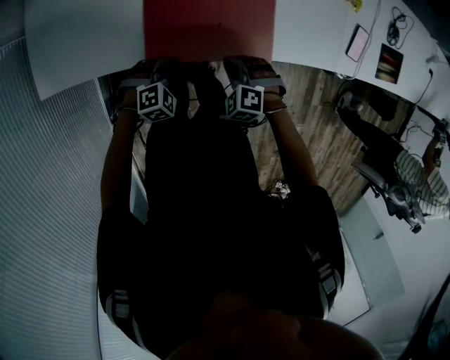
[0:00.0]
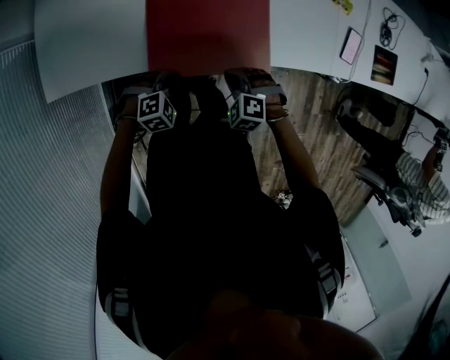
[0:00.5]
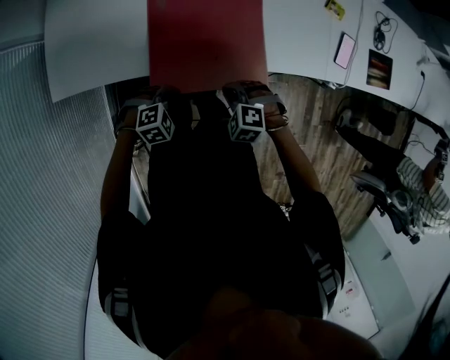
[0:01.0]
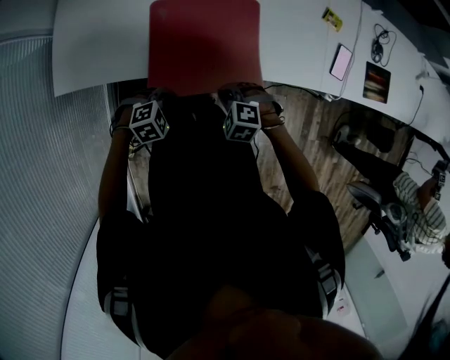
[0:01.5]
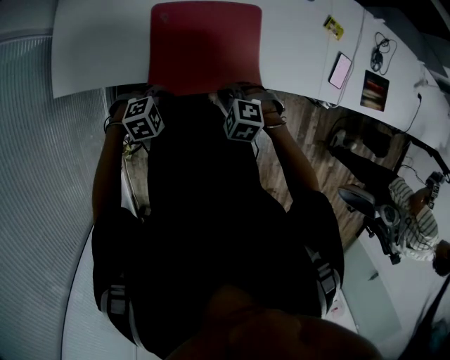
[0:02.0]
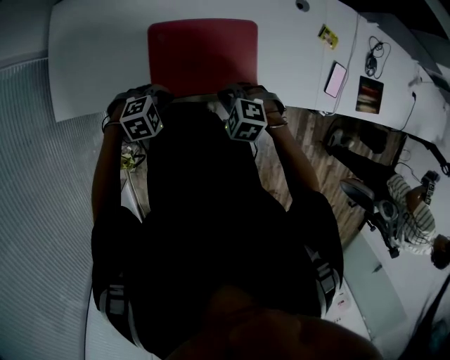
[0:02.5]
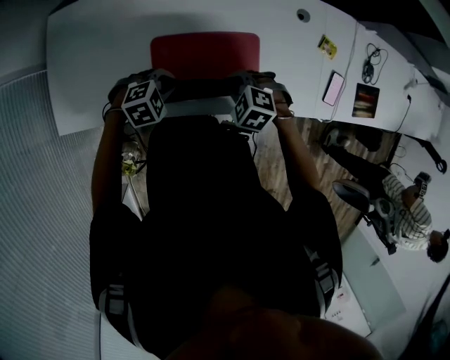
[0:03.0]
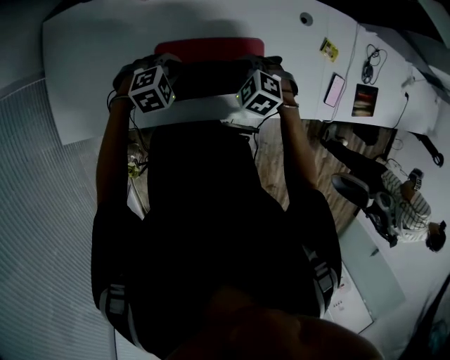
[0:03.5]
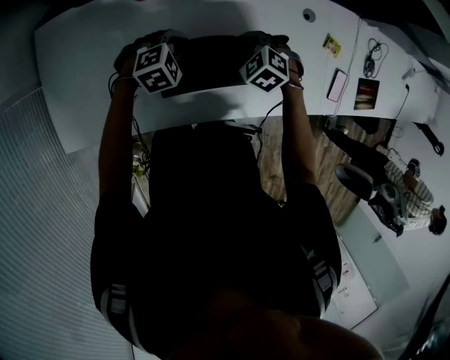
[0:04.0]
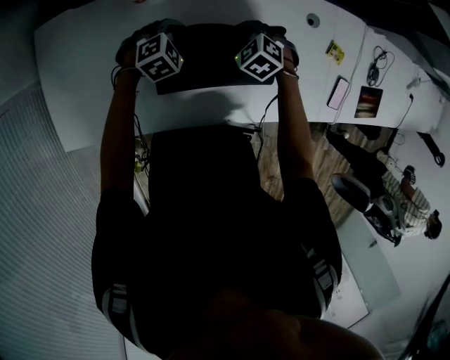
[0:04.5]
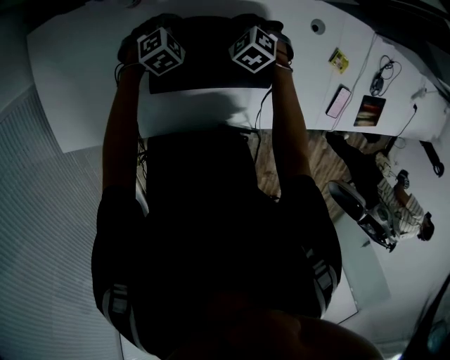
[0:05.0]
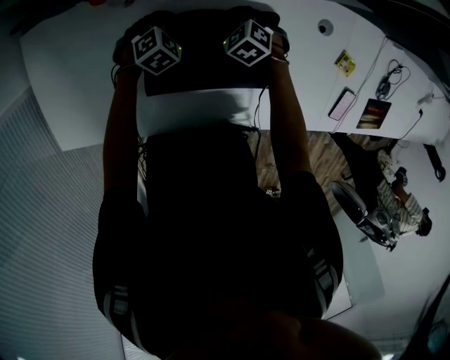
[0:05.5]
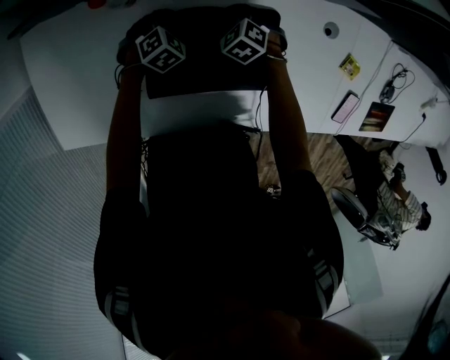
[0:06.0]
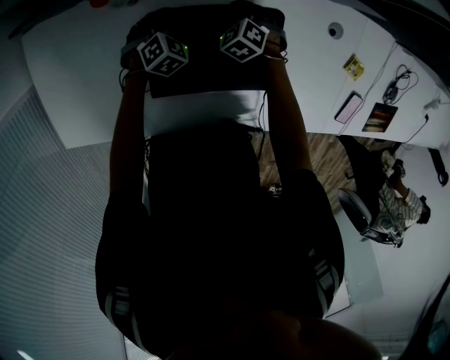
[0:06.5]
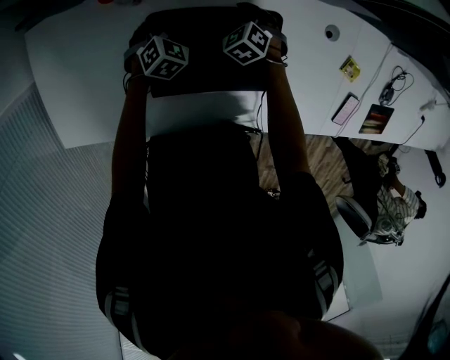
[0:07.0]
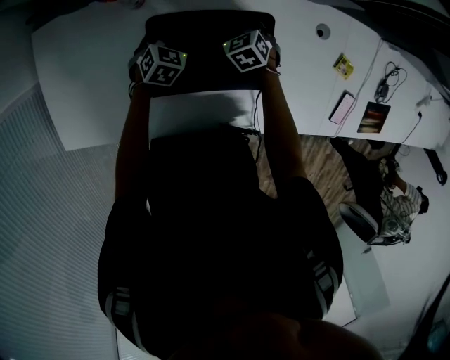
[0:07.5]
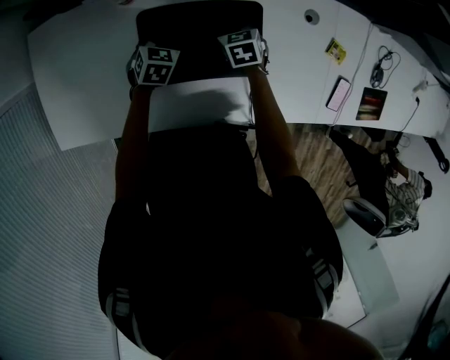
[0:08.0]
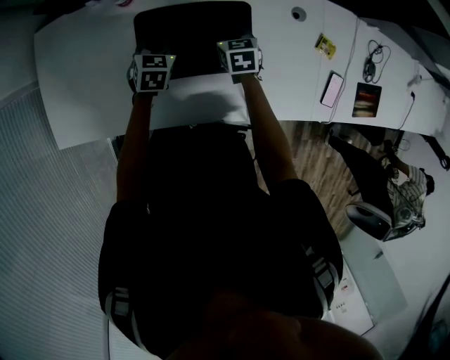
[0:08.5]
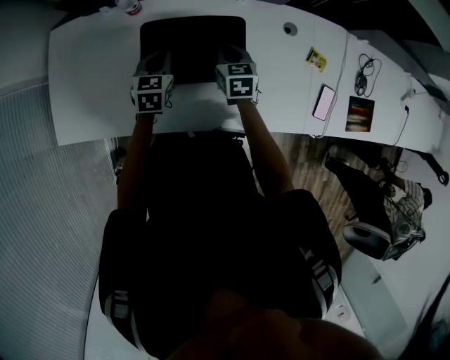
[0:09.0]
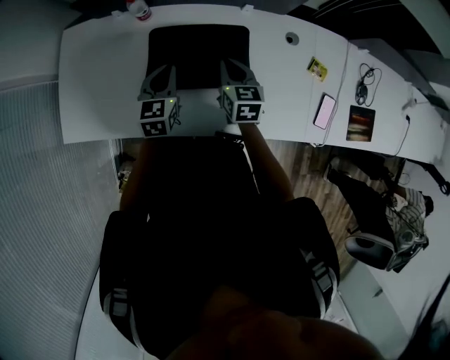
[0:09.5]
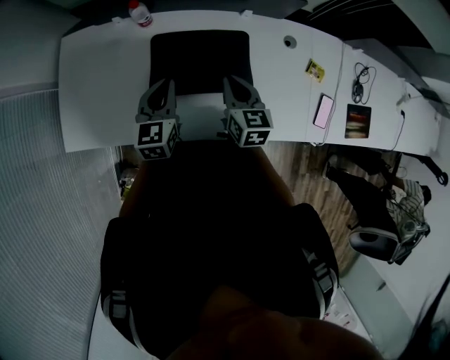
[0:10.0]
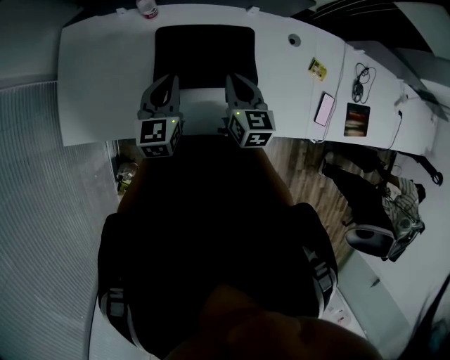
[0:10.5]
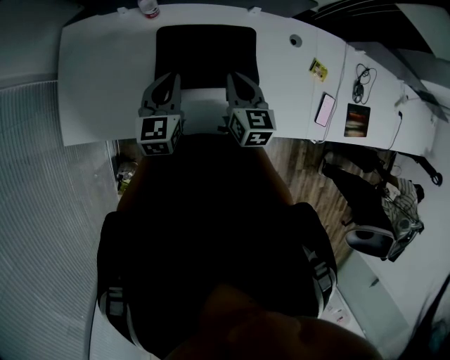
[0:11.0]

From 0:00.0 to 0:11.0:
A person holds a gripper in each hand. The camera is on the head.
From 0:00.0 to 0:02.0: The grippers both shift upward by roughly 10 cm.
From 0:02.0 to 0:03.5: The right gripper shifts by about 25 cm; the left gripper shifts by approximately 30 cm.
From 0:03.5 to 0:05.5: The grippers both shift forward and downward by some 25 cm. The left gripper turns by approximately 20 degrees.
From 0:05.5 to 0:07.5: The left gripper turns by about 20 degrees, and opens, then closes again.
From 0:07.5 to 0:09.0: The grippers both shift backward and upward by roughly 20 cm. The right gripper rotates about 30 degrees; the left gripper rotates roughly 30 degrees.
From 0:09.0 to 0:11.0: The two grippers go roughly 15 cm upward and backward.

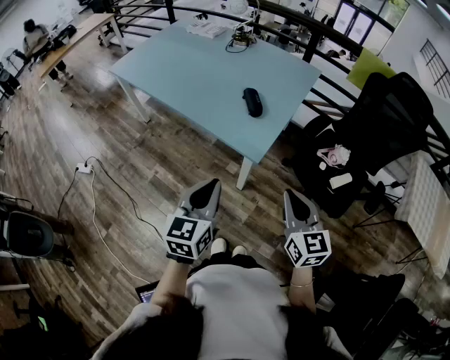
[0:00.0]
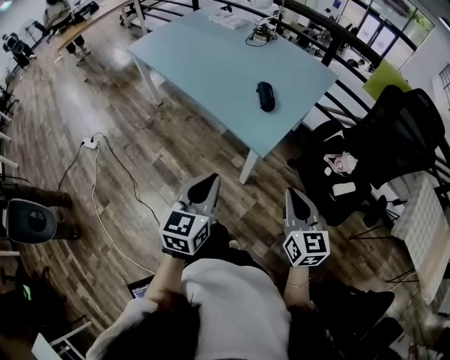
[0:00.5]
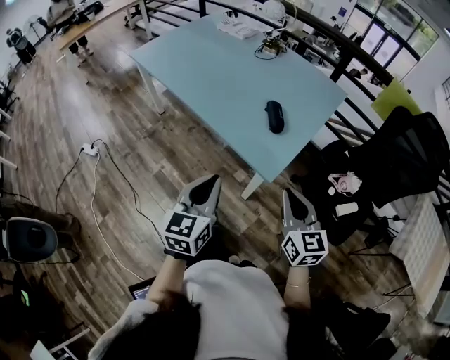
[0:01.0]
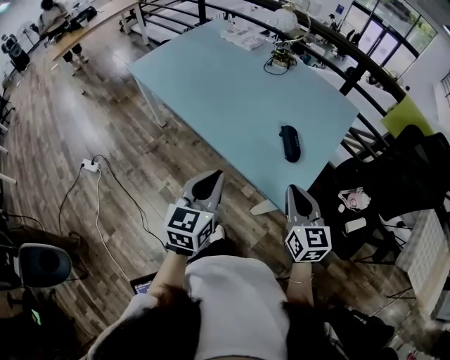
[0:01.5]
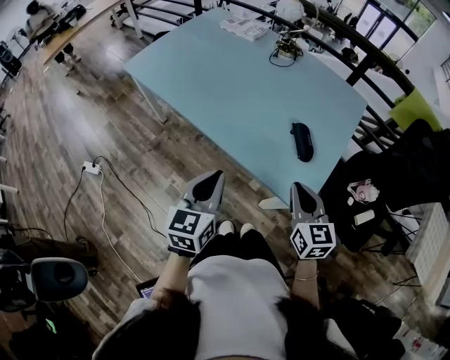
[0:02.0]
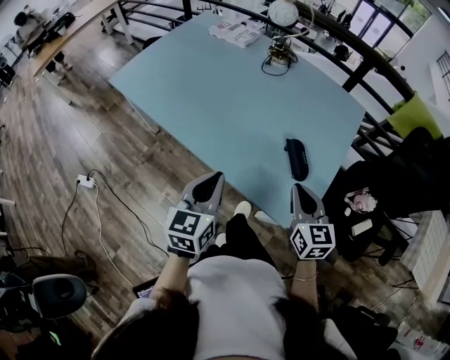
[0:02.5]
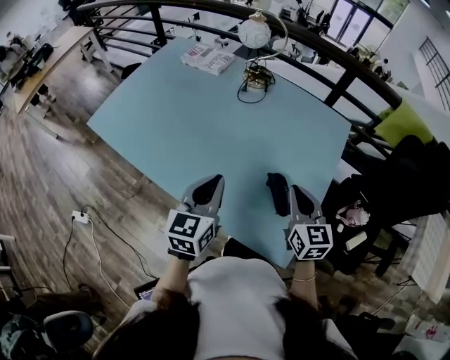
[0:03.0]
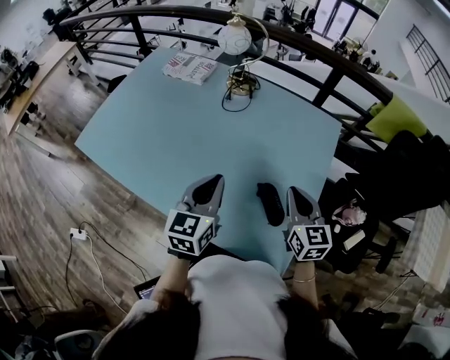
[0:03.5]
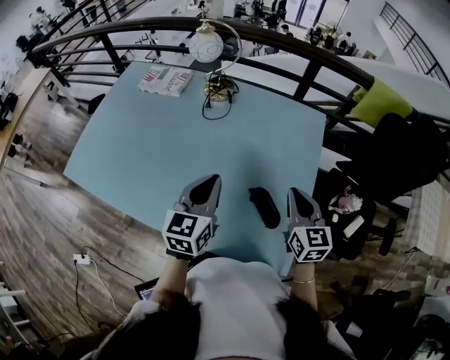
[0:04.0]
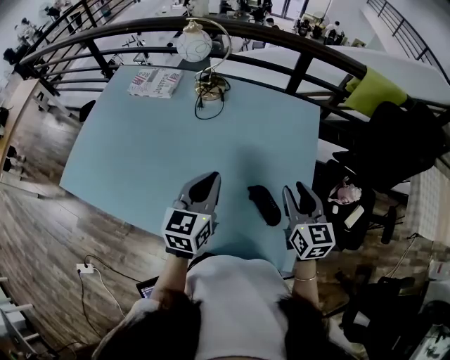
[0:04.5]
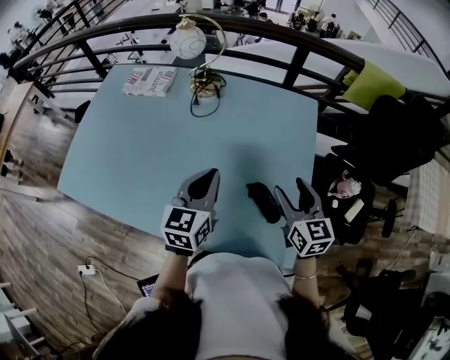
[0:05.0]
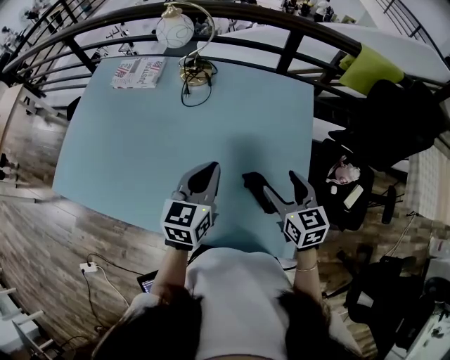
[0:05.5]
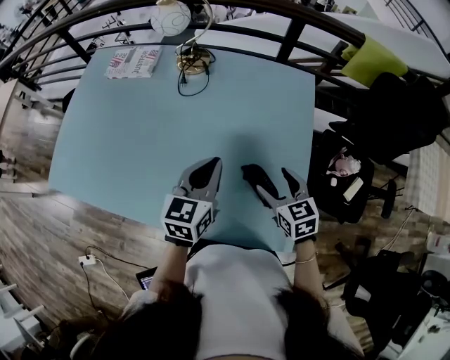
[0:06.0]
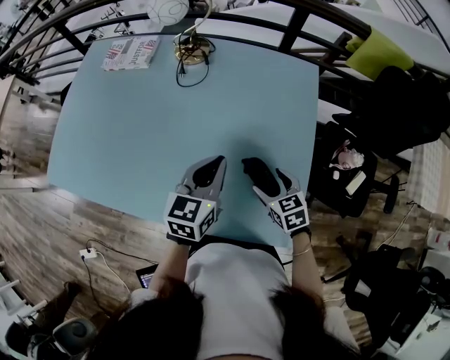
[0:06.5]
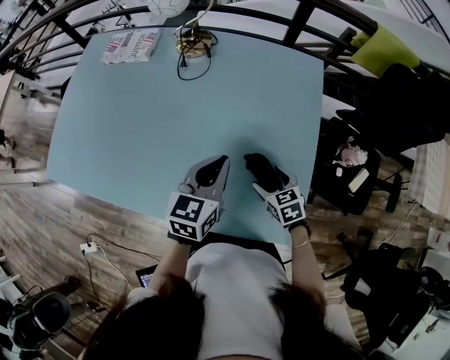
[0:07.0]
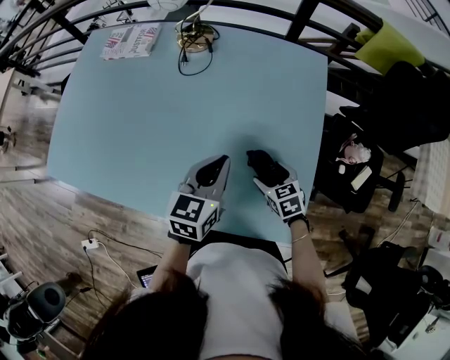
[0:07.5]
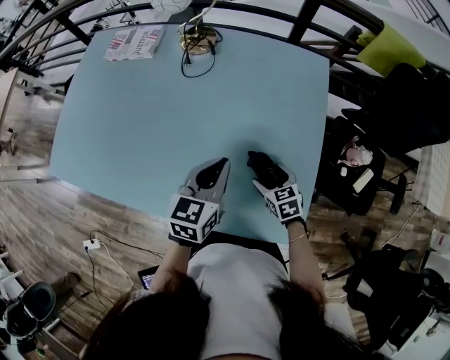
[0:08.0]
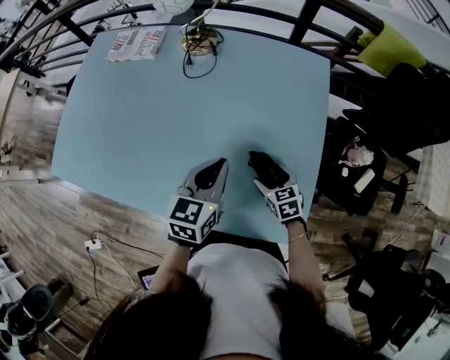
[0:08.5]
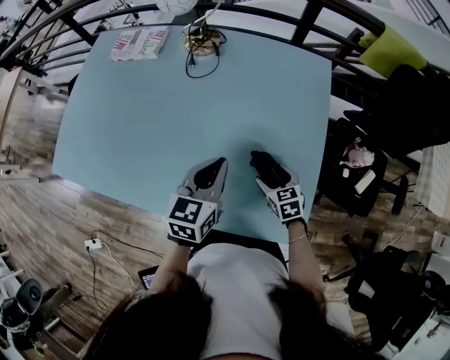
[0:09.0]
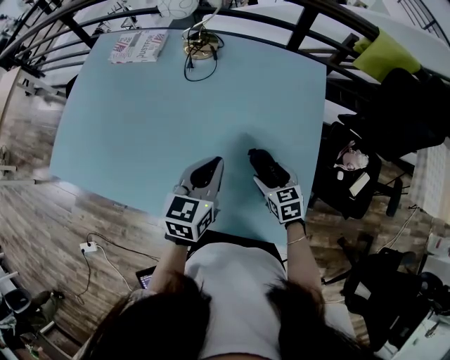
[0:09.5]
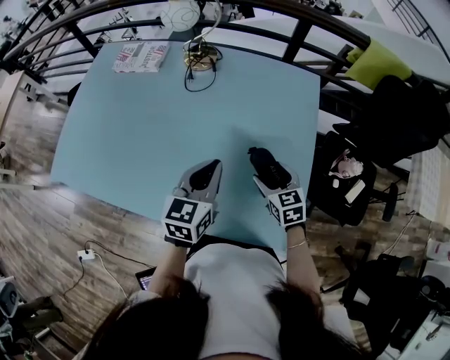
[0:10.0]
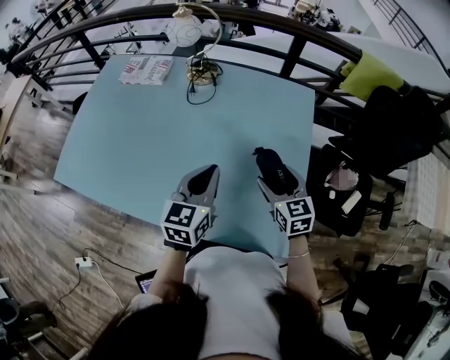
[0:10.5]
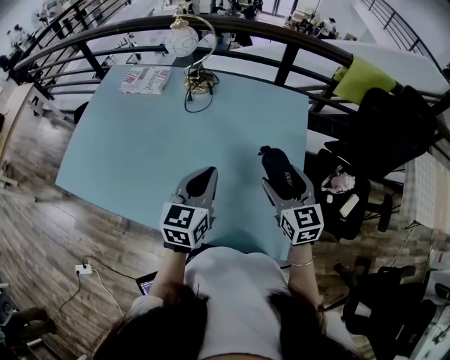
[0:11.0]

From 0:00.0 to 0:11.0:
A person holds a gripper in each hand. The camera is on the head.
From 0:00.0 to 0:02.0: The grippers both shift forward and to the left by some 30 cm.
From 0:02.0 to 0:03.5: Both grippers move forward, roughly 25 cm.
From 0:03.5 to 0:05.5: The left gripper travels forward by some 5 cm. The right gripper opens.
From 0:05.5 to 0:07.5: The right gripper is displaced downward by some 20 cm, and rotates about 30 degrees, while the left gripper moves downward, about 5 cm.
From 0:07.5 to 0:09.0: The grippers move only a little.
From 0:09.0 to 0:11.0: The left gripper shifts some 5 cm upward. The right gripper moves upward, about 25 cm, and angles its fingers upward, by about 30 degrees.

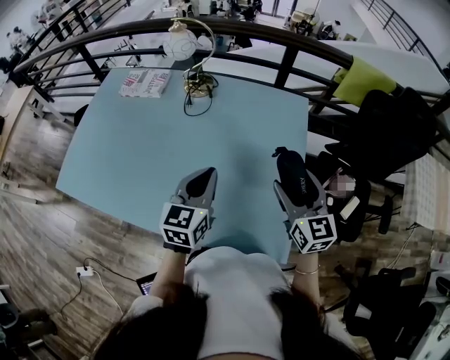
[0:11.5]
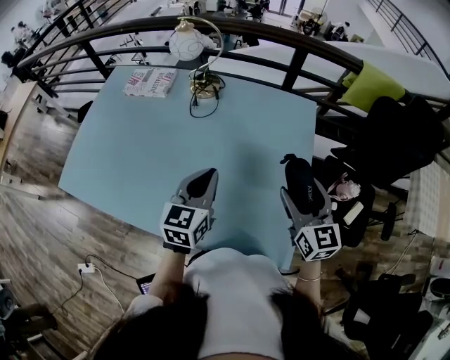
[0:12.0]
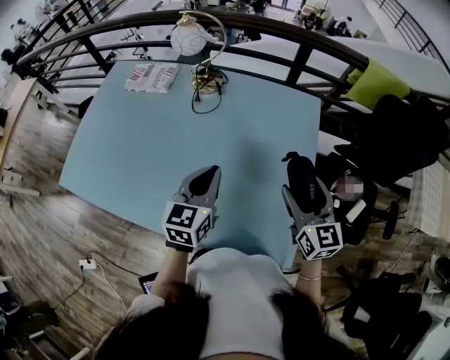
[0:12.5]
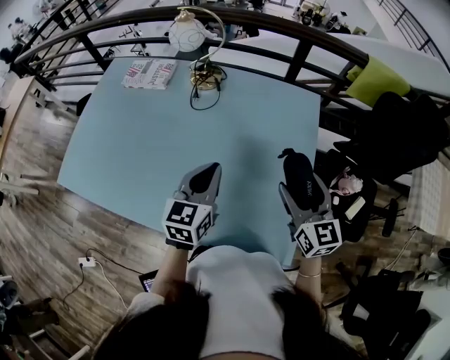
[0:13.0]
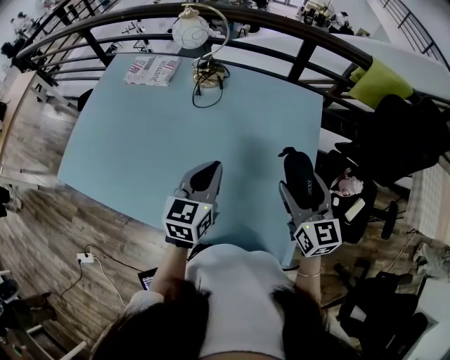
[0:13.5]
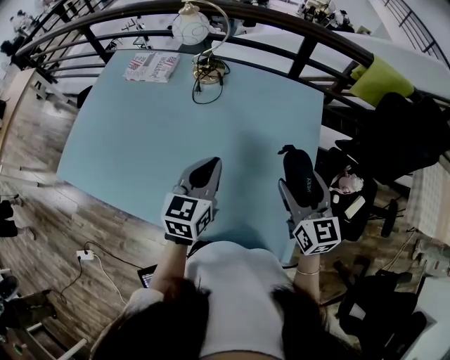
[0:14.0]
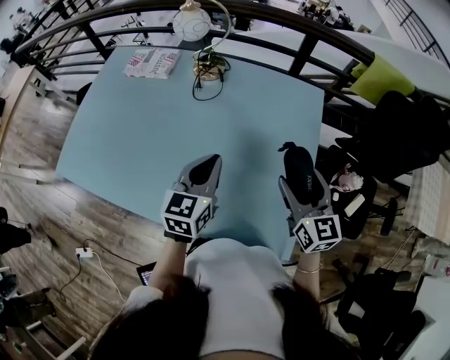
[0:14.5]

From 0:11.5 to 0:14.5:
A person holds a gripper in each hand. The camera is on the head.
From 0:11.5 to 0:13.0: The grippers stay close to where they were, moving slightly.
From 0:13.0 to 0:14.5: Both grippers stay put.

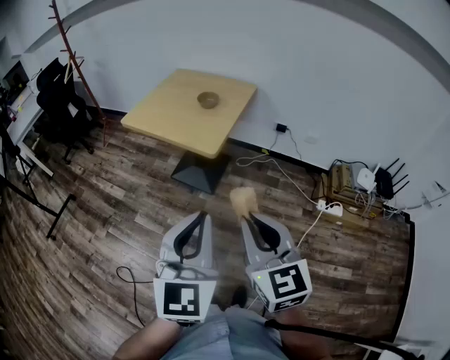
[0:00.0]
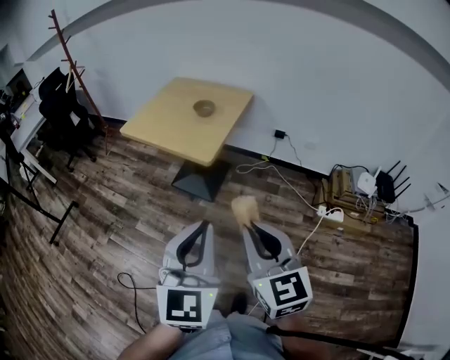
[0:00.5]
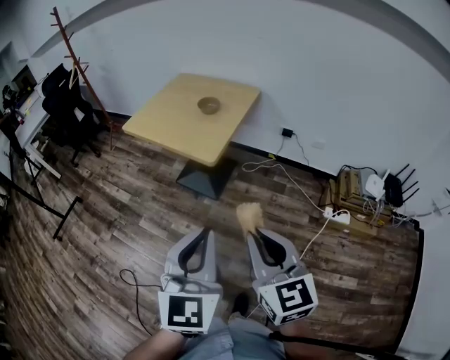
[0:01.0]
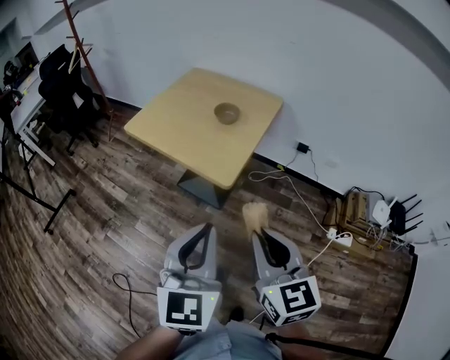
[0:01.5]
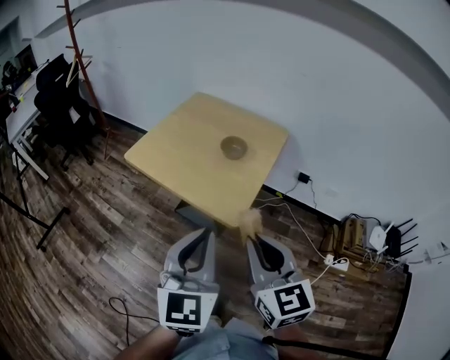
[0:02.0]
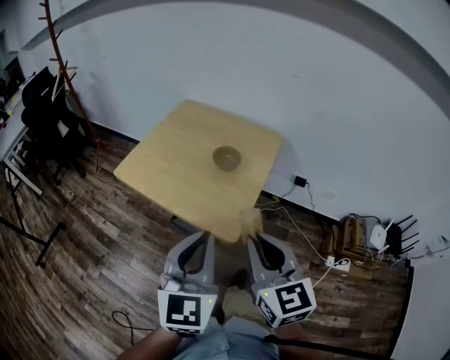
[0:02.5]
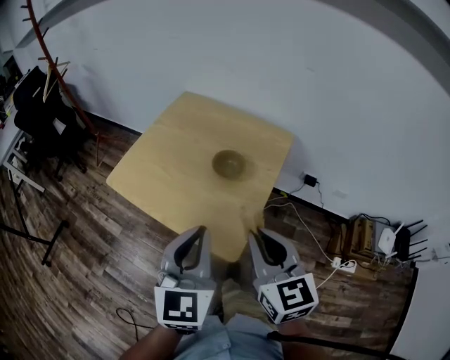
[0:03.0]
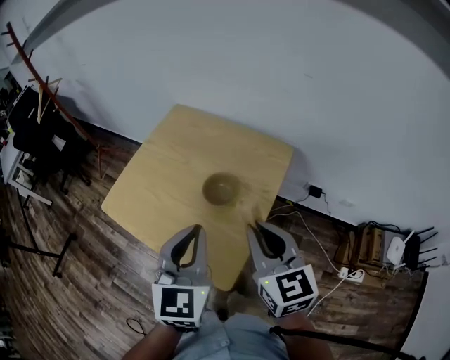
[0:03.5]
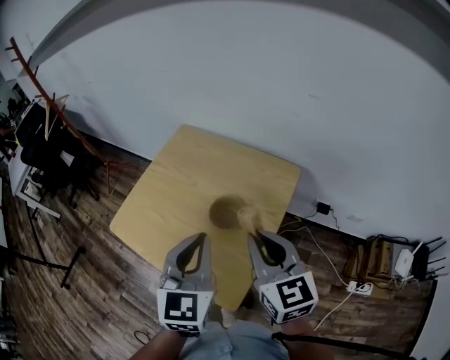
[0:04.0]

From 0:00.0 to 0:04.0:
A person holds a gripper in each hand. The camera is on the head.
From 0:00.0 to 0:02.0: Both grippers move forward, roughly 25 cm.
From 0:02.0 to 0:04.0: The grippers both shift forward by about 30 cm.
